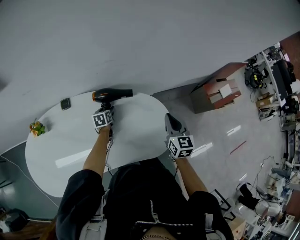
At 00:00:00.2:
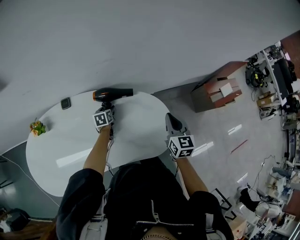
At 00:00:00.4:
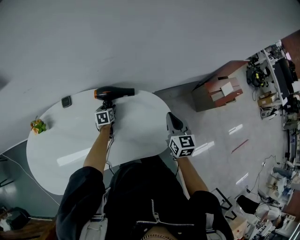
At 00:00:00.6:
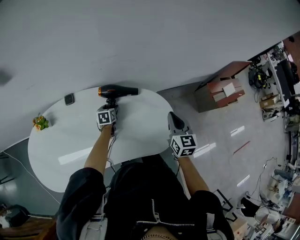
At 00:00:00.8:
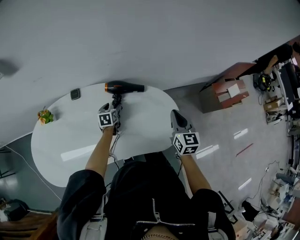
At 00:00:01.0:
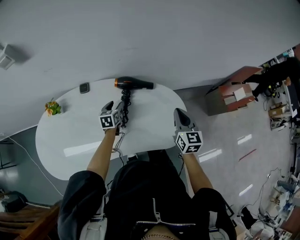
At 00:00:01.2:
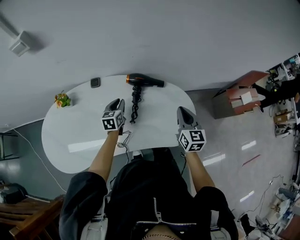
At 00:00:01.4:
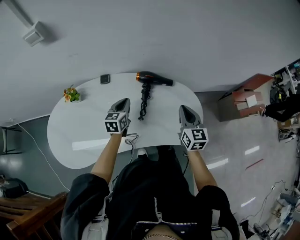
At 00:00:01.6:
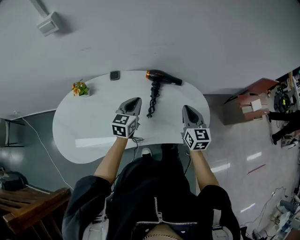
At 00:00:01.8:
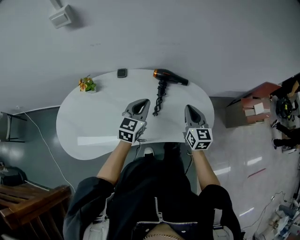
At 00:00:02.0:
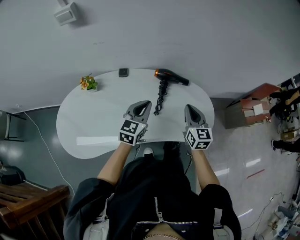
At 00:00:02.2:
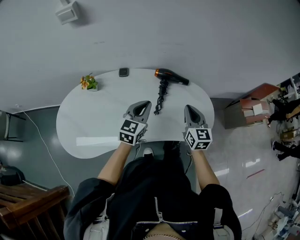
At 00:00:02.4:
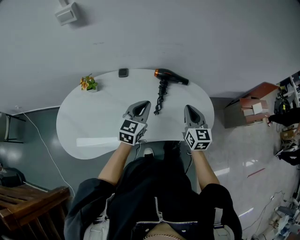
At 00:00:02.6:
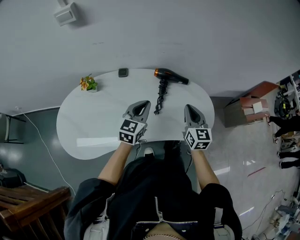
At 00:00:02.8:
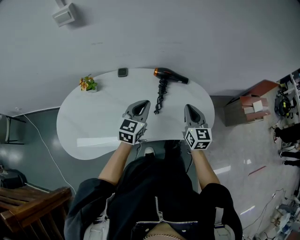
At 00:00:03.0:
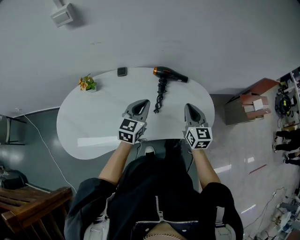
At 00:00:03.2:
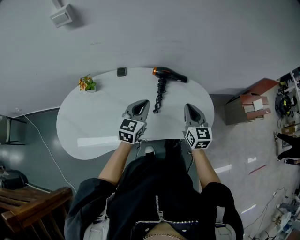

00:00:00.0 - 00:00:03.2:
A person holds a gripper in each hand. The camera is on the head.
00:00:00.0 - 00:00:01.6: The right gripper moves to the left and backward, roughly 15 cm; the left gripper heads upward and backward, covering roughly 30 cm, swivels some 30 degrees, and closes its fingers.
00:00:01.6 - 00:00:03.2: The left gripper heads backward, covering approximately 5 cm.

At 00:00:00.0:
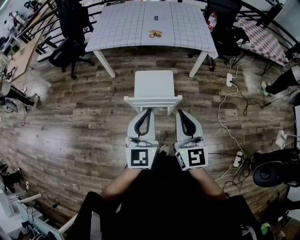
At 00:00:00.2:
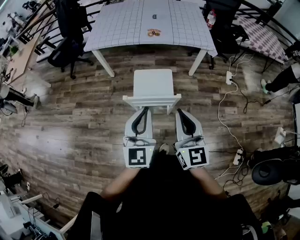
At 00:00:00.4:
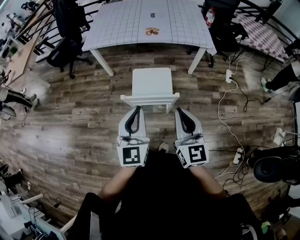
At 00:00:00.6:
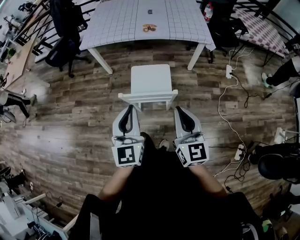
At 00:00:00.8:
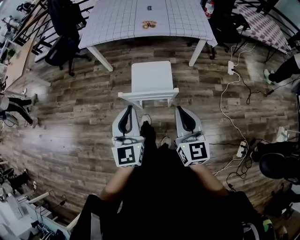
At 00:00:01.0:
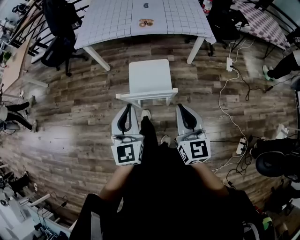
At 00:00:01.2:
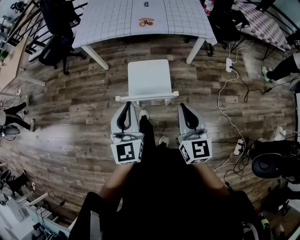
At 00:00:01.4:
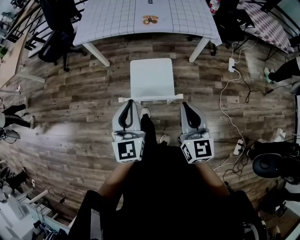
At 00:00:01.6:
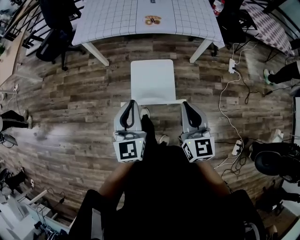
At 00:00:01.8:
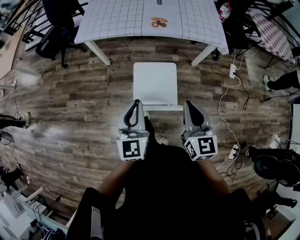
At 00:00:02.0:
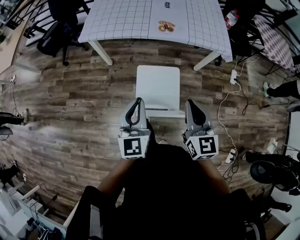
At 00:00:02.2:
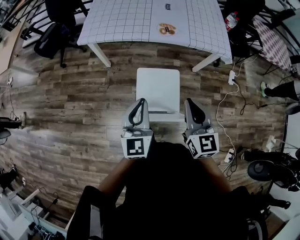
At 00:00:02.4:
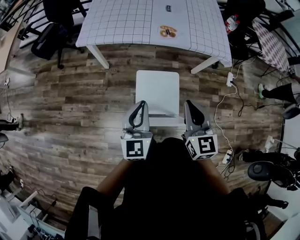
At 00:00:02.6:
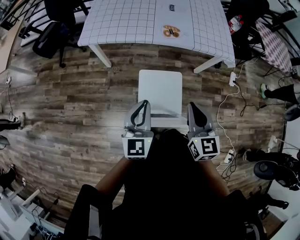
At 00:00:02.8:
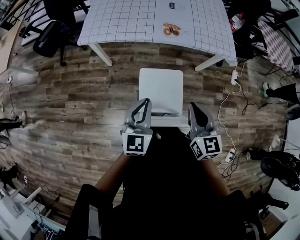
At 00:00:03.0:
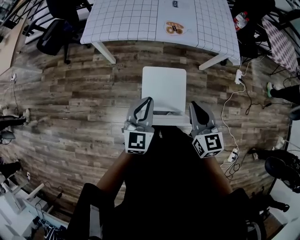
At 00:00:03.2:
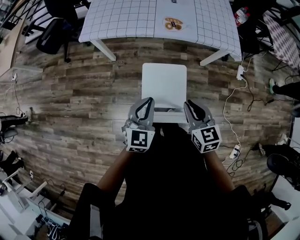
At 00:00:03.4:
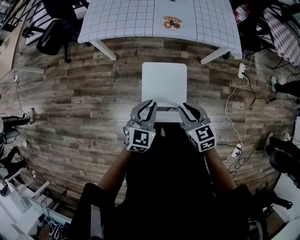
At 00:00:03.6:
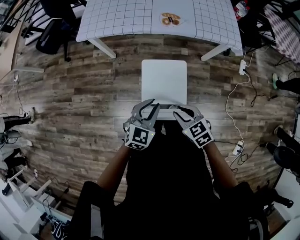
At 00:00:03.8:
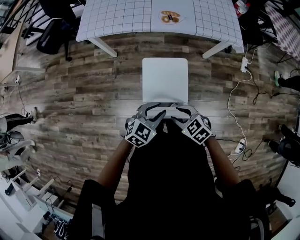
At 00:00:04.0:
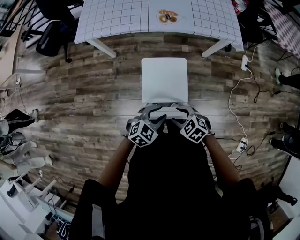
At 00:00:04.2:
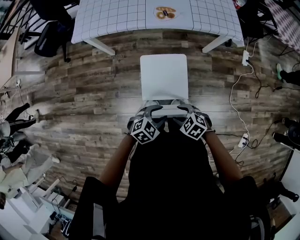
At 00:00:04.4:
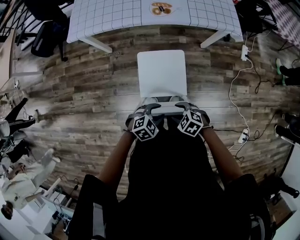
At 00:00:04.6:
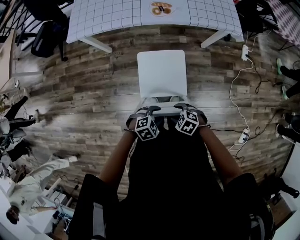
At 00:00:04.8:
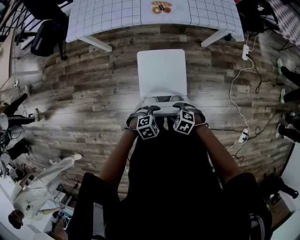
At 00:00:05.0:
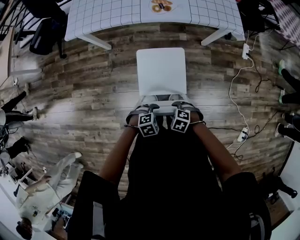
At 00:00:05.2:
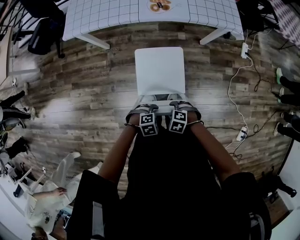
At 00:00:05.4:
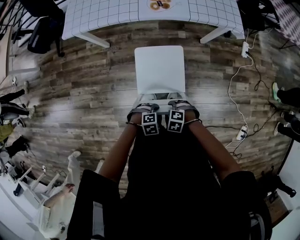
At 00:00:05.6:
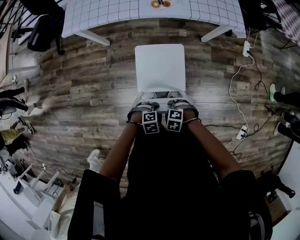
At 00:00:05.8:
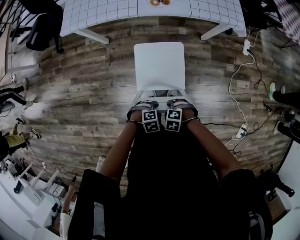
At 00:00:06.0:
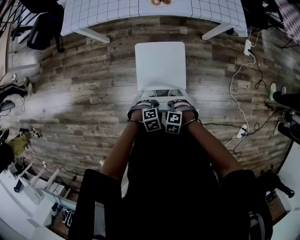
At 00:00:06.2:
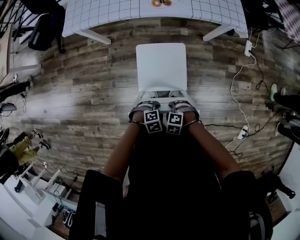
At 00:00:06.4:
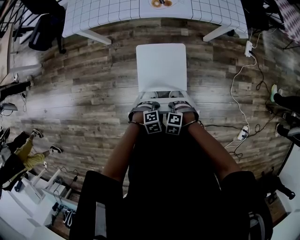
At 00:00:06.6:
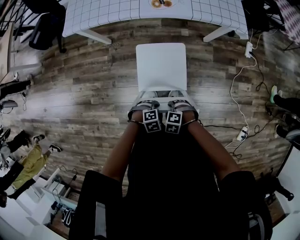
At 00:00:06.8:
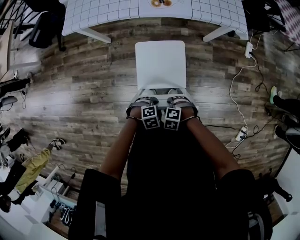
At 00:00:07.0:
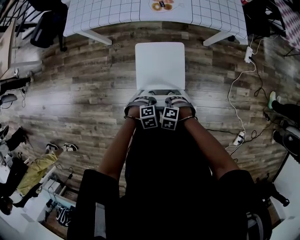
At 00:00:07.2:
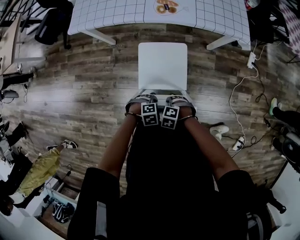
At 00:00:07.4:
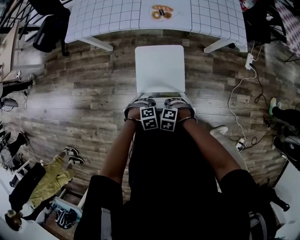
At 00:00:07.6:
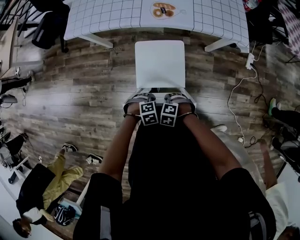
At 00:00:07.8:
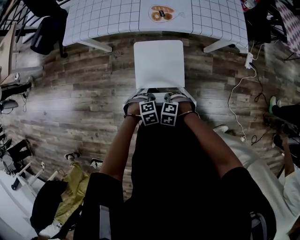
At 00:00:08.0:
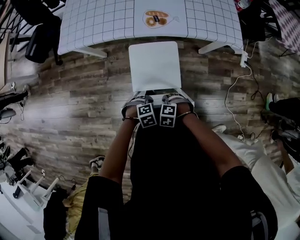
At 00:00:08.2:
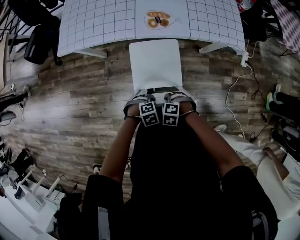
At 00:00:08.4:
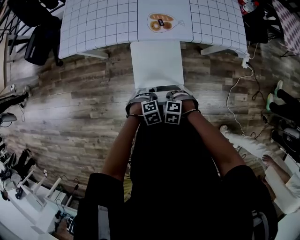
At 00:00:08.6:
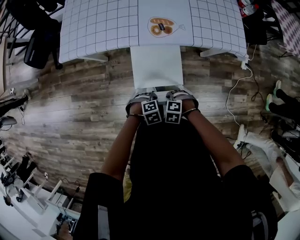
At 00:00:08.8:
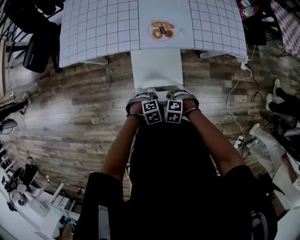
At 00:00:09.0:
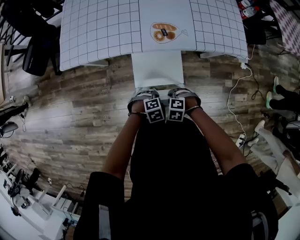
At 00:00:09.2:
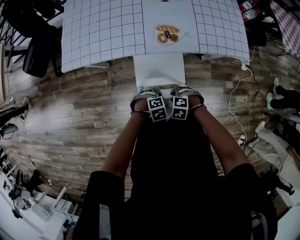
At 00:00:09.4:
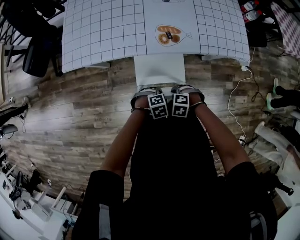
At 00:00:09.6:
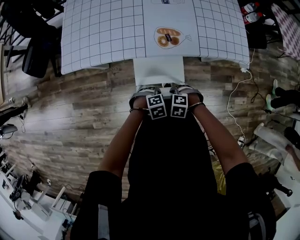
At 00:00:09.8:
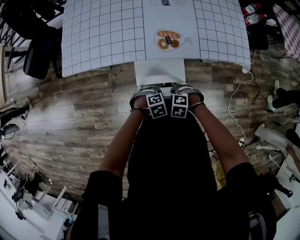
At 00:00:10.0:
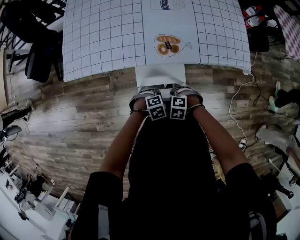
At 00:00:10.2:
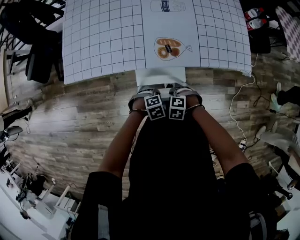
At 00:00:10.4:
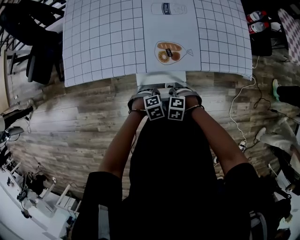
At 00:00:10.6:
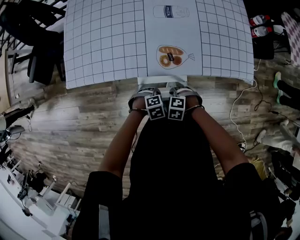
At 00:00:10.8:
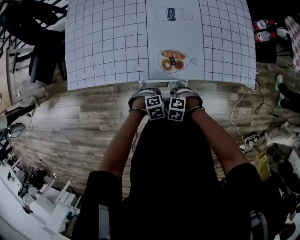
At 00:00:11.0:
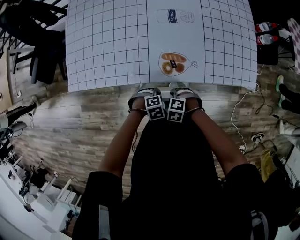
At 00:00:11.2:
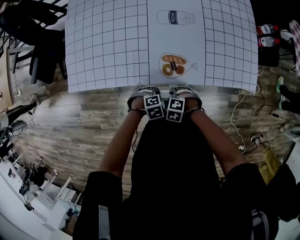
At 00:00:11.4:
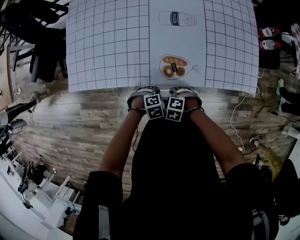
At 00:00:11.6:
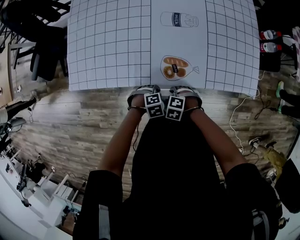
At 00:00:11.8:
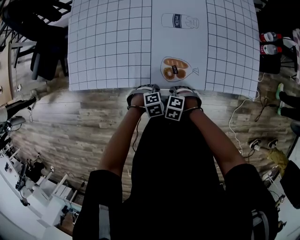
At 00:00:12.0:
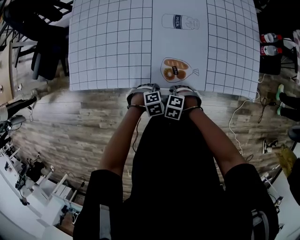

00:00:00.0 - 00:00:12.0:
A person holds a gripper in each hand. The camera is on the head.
00:00:00.0 - 00:00:01.6: The left gripper goes approximately 15 cm forward; the right gripper heads forward and downward, covering approximately 15 cm.
00:00:01.6 - 00:00:03.0: The left gripper heads forward, covering about 15 cm. Meanwhile the right gripper heads forward and to the left, covering some 15 cm.
00:00:03.0 - 00:00:04.4: The two grippers go some 25 cm downward. The right gripper angles its fingers downward, by approximately 40 degrees, and opens its fingers; the left gripper points its fingers approximately 40 degrees further downward, and opens.
00:00:04.4 - 00:00:06.0: The grippers both shift downward by some 10 cm. The left gripper turns by roughly 20 degrees, and closes, while the right gripper rotates approximately 30 degrees, and closes its fingers.
00:00:06.0 - 00:00:07.6: The left gripper ends up about 10 cm from where it was. The right gripper moves about 10 cm.
00:00:07.6 - 00:00:09.0: The right gripper ends up some 15 cm from where it was. The left gripper moves some 15 cm.
00:00:09.0 - 00:00:10.4: The right gripper ends up roughly 15 cm from where it was. Meanwhile the left gripper changes place by roughly 15 cm.
00:00:10.4 - 00:00:12.0: The right gripper moves some 10 cm, while the left gripper ends up some 10 cm from where it was.

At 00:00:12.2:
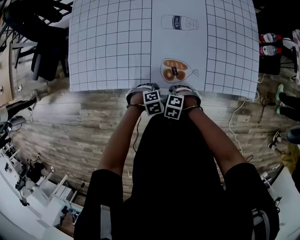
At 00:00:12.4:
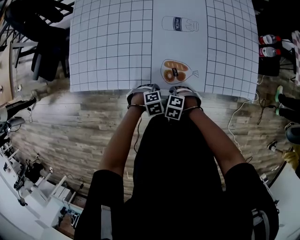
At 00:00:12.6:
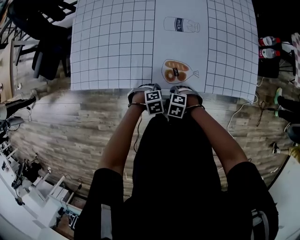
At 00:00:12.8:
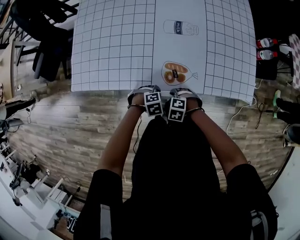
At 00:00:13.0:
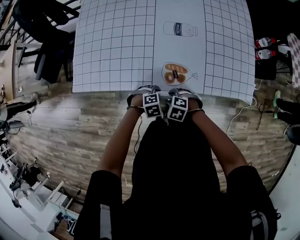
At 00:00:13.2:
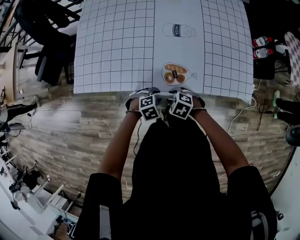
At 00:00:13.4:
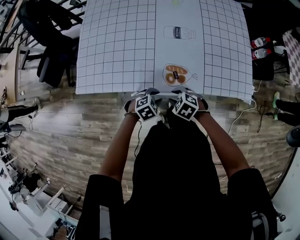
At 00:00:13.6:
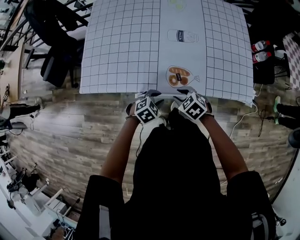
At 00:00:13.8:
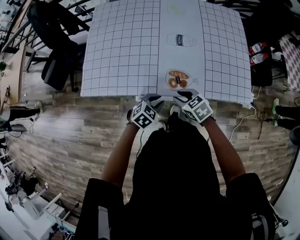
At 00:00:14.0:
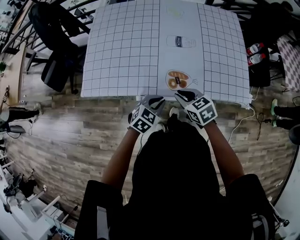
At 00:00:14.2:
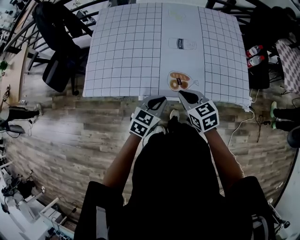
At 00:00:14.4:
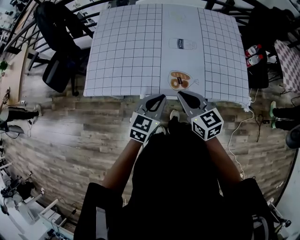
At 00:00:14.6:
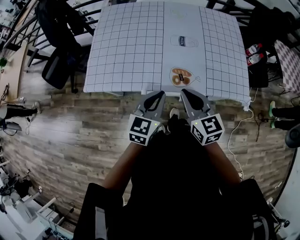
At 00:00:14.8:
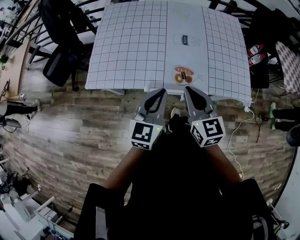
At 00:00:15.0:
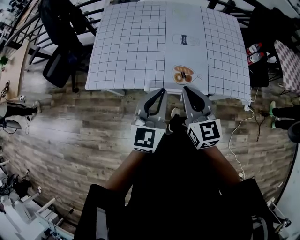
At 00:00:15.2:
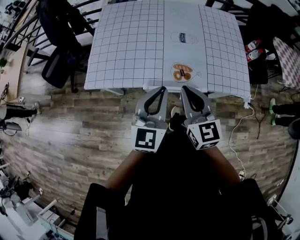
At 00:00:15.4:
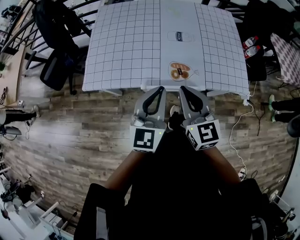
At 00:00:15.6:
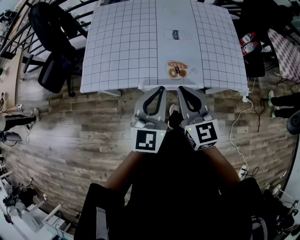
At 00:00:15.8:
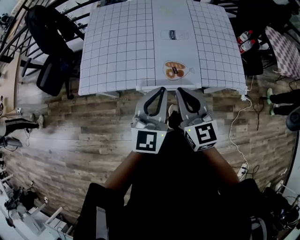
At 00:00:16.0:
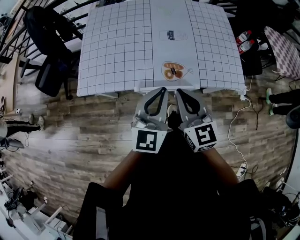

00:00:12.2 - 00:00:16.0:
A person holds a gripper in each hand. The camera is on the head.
00:00:12.2 - 00:00:13.4: Both grippers move upward, some 10 cm. The right gripper swivels roughly 20 degrees. The left gripper changes its angle by some 20 degrees.
00:00:13.4 - 00:00:14.8: The two grippers go about 25 cm upward. The left gripper tilts its fingers some 50 degrees upward, and closes its fingers, while the right gripper tips its fingers upward by some 50 degrees, and closes.
00:00:14.8 - 00:00:16.0: The left gripper ends up about 5 cm from where it was.

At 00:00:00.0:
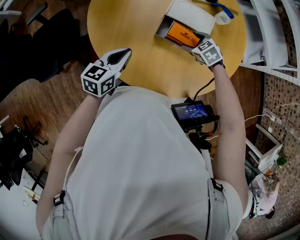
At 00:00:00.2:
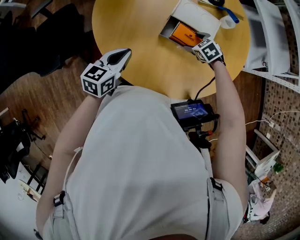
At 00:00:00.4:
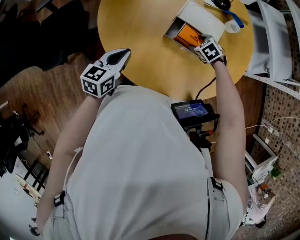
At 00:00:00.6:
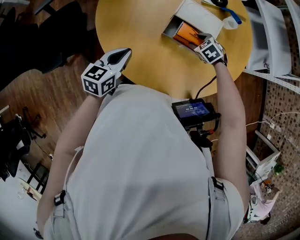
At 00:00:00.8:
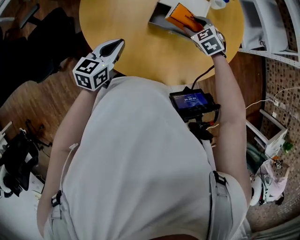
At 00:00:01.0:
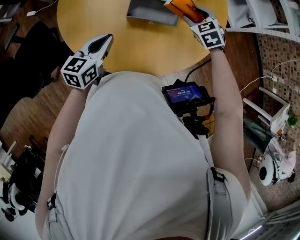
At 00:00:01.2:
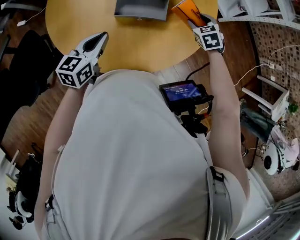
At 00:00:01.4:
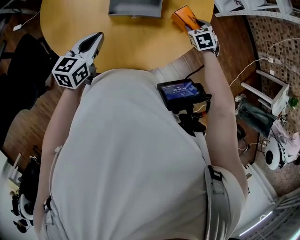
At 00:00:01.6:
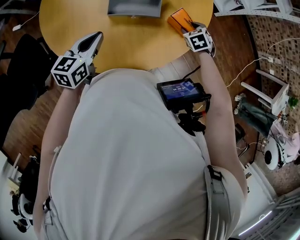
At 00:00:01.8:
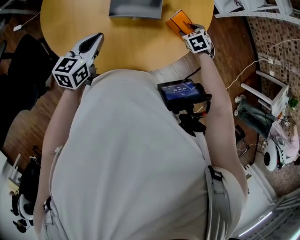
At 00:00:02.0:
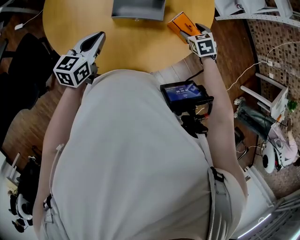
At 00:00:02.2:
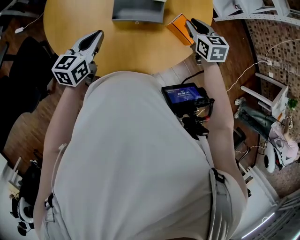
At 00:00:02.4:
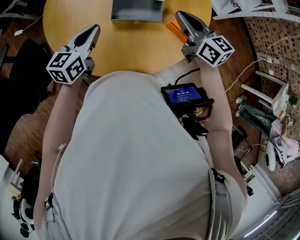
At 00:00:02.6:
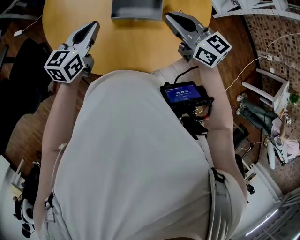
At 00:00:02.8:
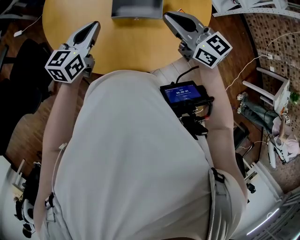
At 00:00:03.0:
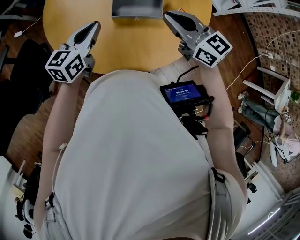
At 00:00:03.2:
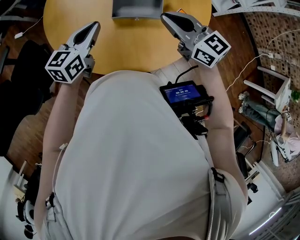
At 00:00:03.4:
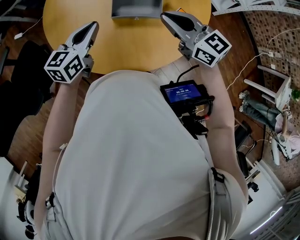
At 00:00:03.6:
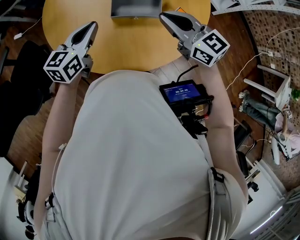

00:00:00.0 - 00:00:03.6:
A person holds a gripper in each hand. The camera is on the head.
00:00:00.0 - 00:00:01.8: The left gripper ends up about 10 cm from where it was. The right gripper travels upward and back again, some 10 cm each way, and rotates about 40 degrees.
00:00:01.8 - 00:00:03.6: The left gripper shifts roughly 5 cm forward. Meanwhile the right gripper goes roughly 30 cm upward and to the left, angles its fingers upward, by roughly 60 degrees, and closes.
